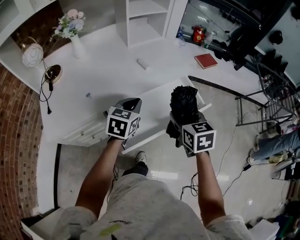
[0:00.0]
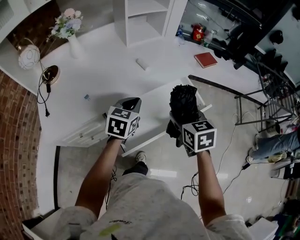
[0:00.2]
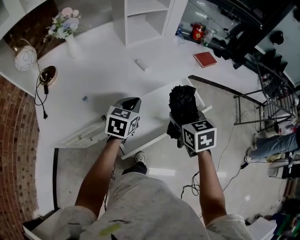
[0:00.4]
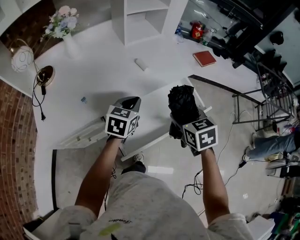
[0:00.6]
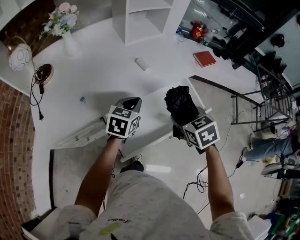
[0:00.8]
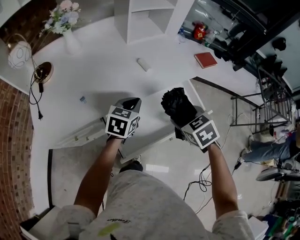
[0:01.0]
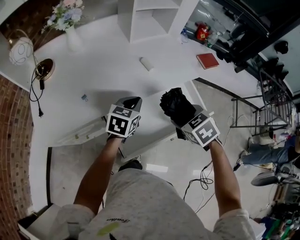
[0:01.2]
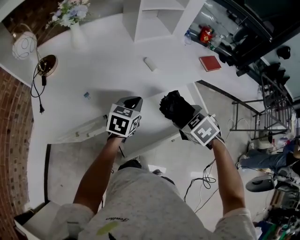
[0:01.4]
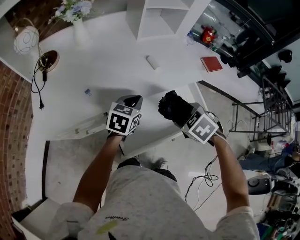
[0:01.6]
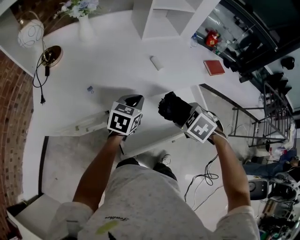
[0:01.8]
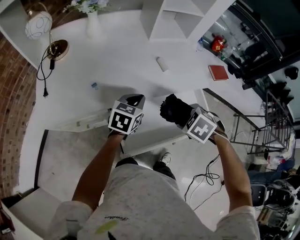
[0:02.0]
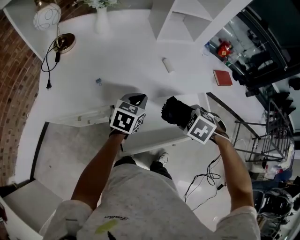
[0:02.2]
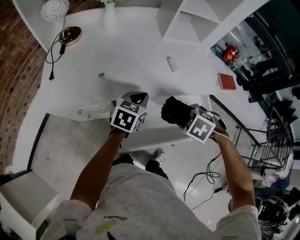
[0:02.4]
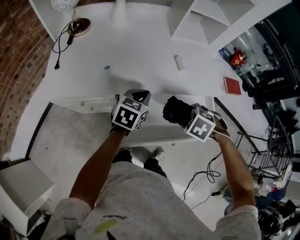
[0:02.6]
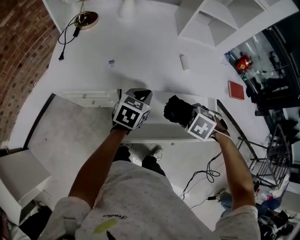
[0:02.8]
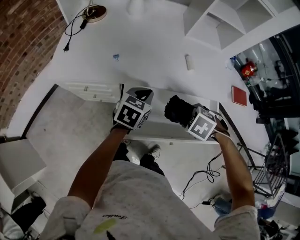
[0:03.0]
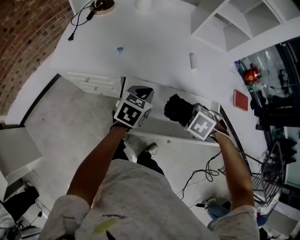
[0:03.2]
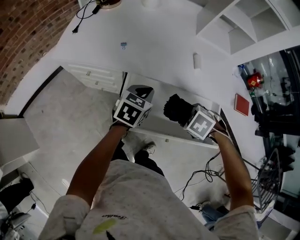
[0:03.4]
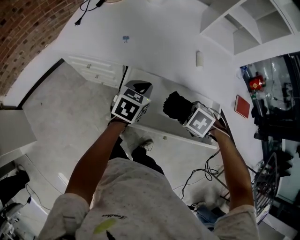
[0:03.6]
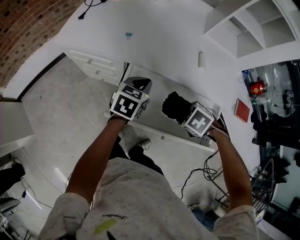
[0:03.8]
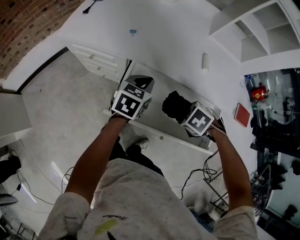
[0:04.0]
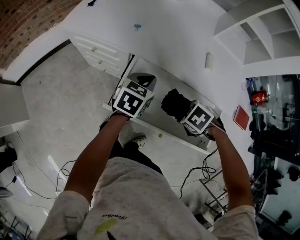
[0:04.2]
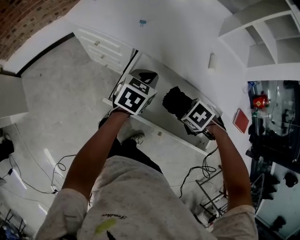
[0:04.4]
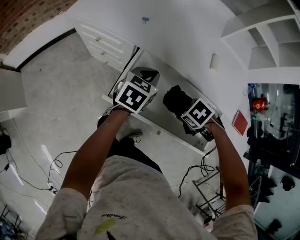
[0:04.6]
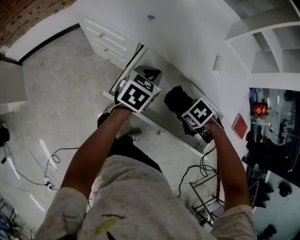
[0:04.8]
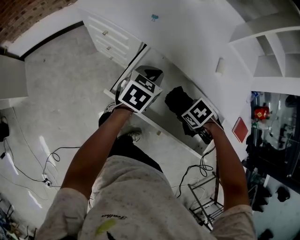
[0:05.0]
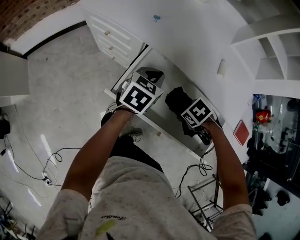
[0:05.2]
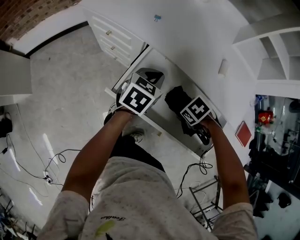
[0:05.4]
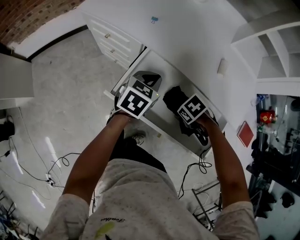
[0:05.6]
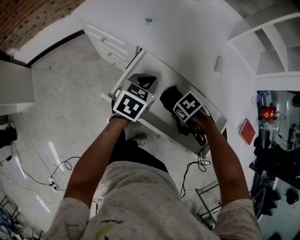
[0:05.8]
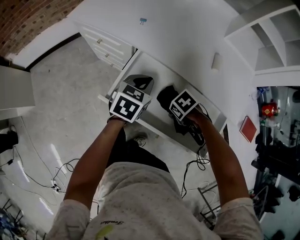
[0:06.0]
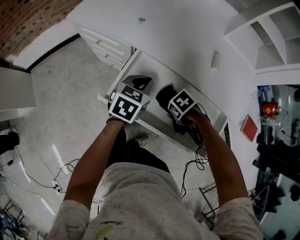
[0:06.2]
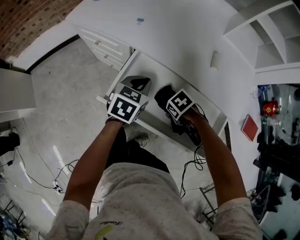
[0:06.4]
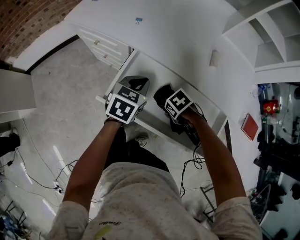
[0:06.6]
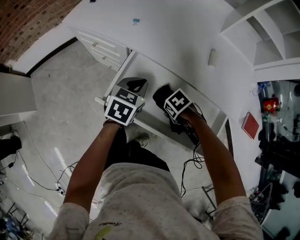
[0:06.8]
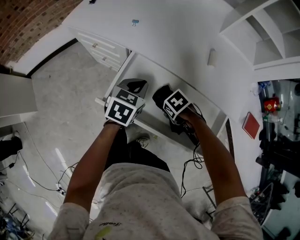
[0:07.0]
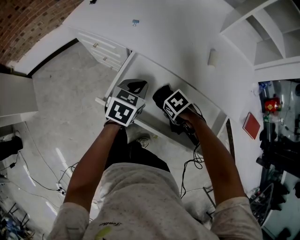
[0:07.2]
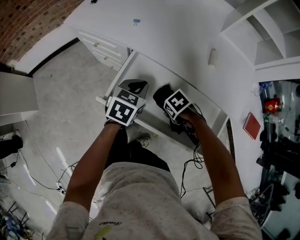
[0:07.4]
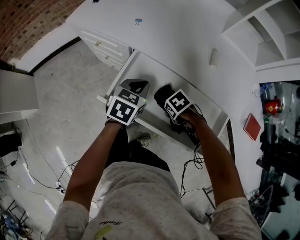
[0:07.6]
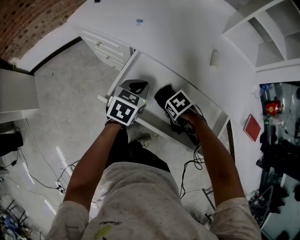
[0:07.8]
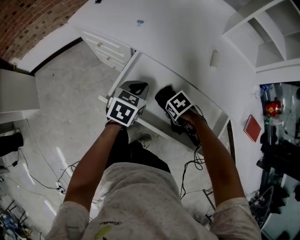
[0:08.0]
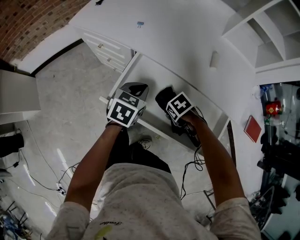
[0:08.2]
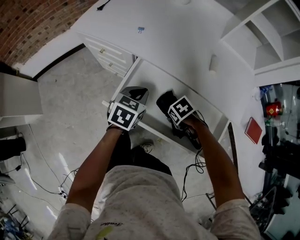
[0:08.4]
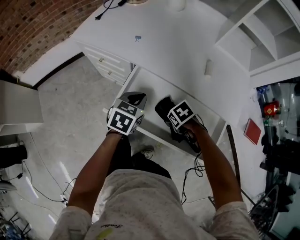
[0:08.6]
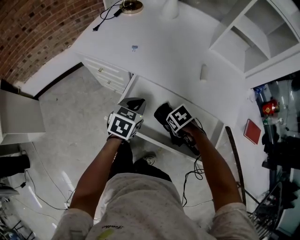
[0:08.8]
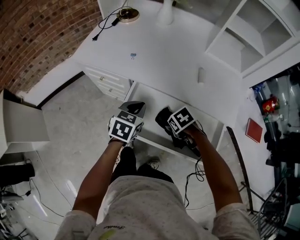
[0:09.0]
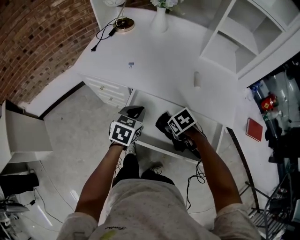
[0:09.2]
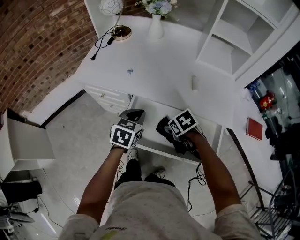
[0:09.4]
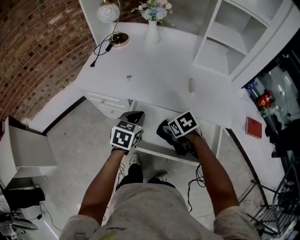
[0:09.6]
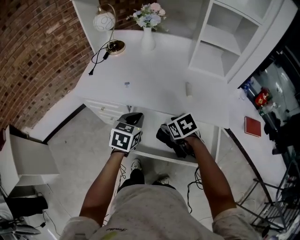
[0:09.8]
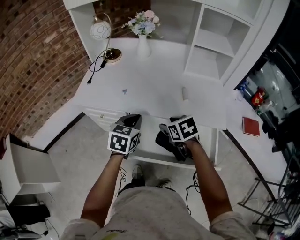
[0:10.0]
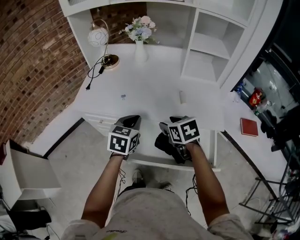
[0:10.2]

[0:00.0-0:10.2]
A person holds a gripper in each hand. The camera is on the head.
0:00.0 to 0:01.4: The right gripper travels downward by about 5 cm, and tilts its fingers approximately 30 degrees downward, while the left gripper shifts some 5 cm forward.
0:01.4 to 0:03.0: The left gripper shifts by approximately 5 cm, and turns by about 20 degrees. The right gripper goes roughly 5 cm downward, and changes its angle by some 50 degrees.
0:03.0 to 0:04.4: The right gripper goes some 5 cm downward.
0:04.4 to 0:05.8: The right gripper shifts some 10 cm downward.
0:05.8 to 0:07.2: There are only small adjustments of the grippers.
0:07.2 to 0:08.8: The right gripper goes about 5 cm upward.
0:08.8 to 0:10.2: The right gripper moves upward, some 20 cm, and tips its fingers upward by some 30 degrees. The left gripper moves upward, about 15 cm.

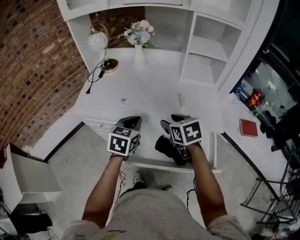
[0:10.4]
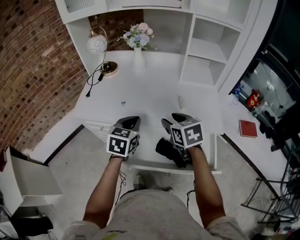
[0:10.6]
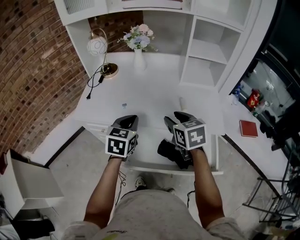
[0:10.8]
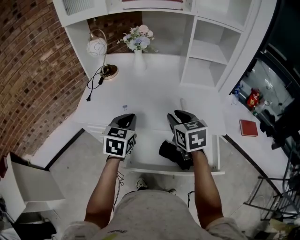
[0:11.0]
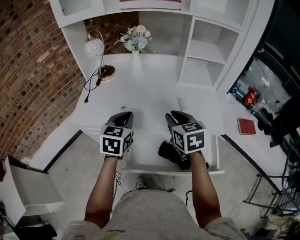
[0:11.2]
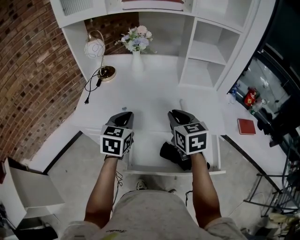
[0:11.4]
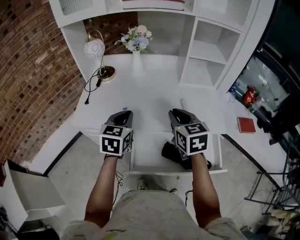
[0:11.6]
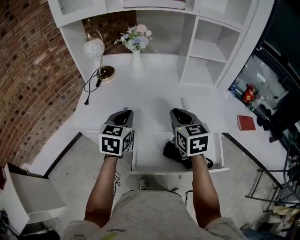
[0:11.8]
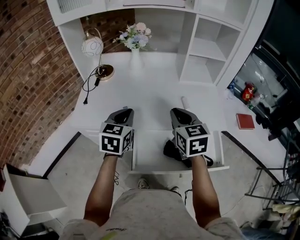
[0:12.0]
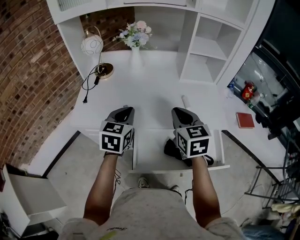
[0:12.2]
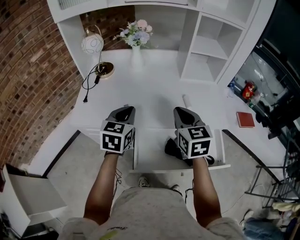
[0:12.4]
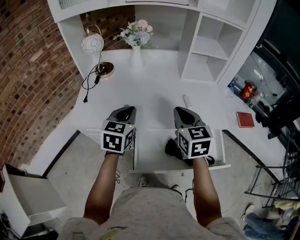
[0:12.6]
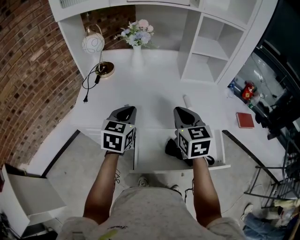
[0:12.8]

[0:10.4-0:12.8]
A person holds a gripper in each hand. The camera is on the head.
0:10.4 to 0:11.6: The left gripper moves to the left and forward, some 10 cm; the right gripper goes roughly 5 cm upward, rotates some 20 degrees, and closes.
0:11.6 to 0:12.8: The grippers move only a little.

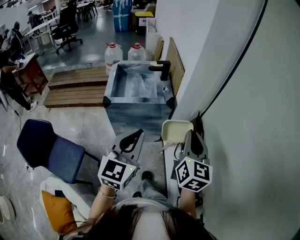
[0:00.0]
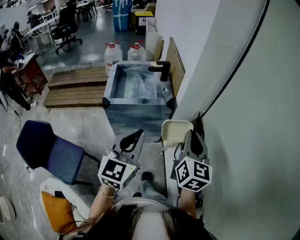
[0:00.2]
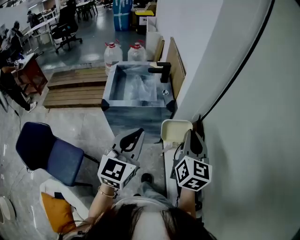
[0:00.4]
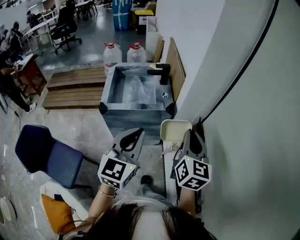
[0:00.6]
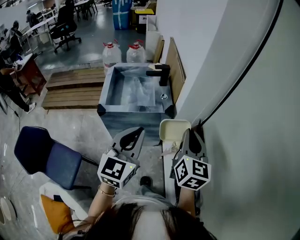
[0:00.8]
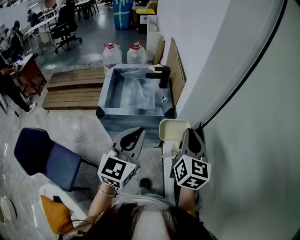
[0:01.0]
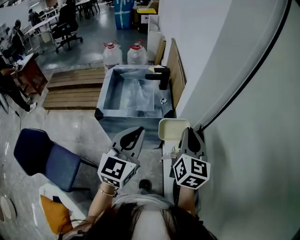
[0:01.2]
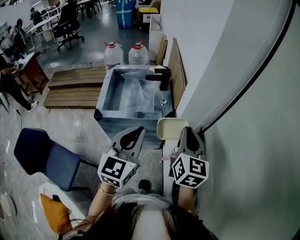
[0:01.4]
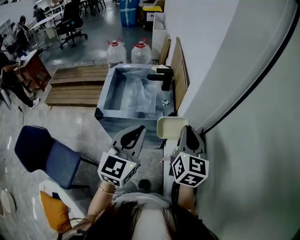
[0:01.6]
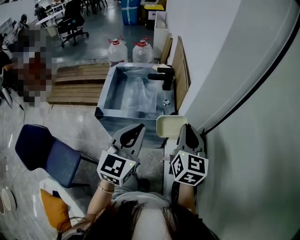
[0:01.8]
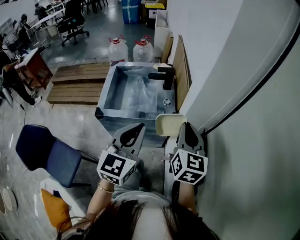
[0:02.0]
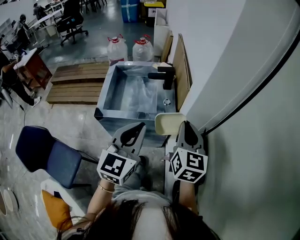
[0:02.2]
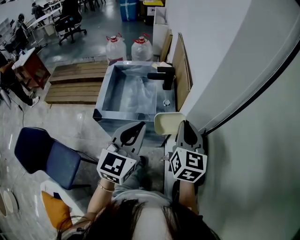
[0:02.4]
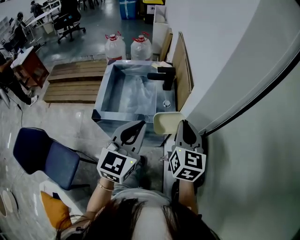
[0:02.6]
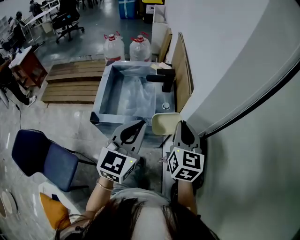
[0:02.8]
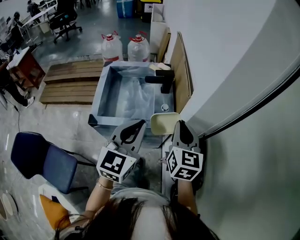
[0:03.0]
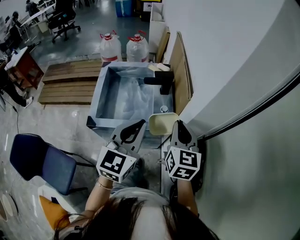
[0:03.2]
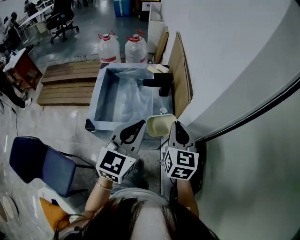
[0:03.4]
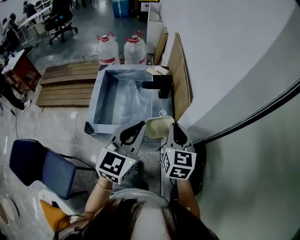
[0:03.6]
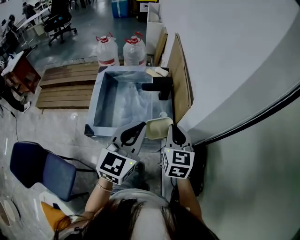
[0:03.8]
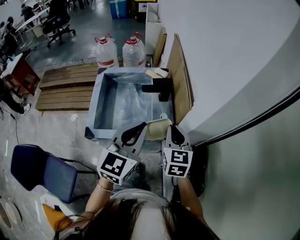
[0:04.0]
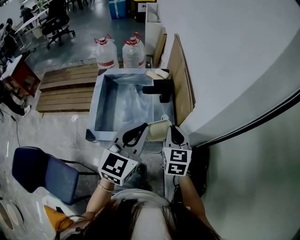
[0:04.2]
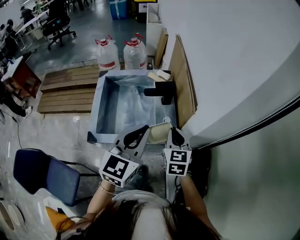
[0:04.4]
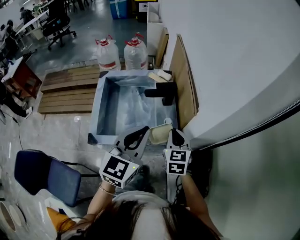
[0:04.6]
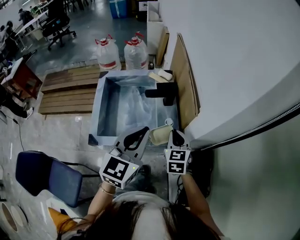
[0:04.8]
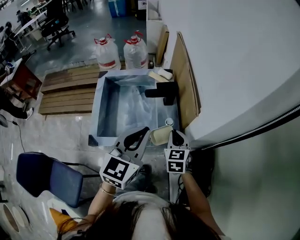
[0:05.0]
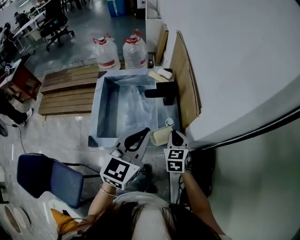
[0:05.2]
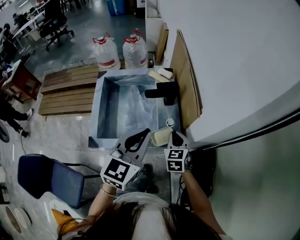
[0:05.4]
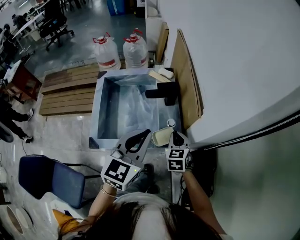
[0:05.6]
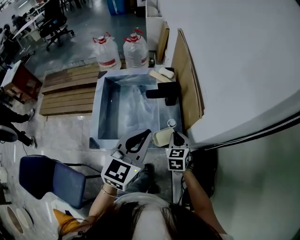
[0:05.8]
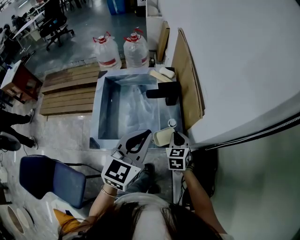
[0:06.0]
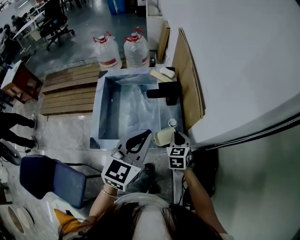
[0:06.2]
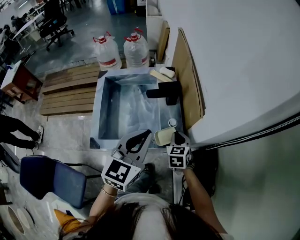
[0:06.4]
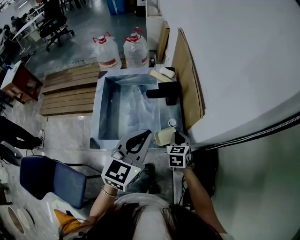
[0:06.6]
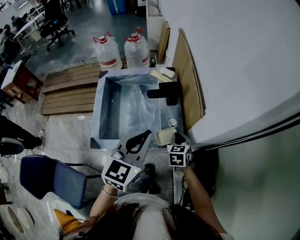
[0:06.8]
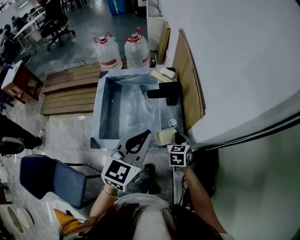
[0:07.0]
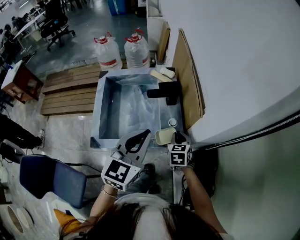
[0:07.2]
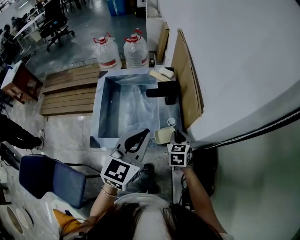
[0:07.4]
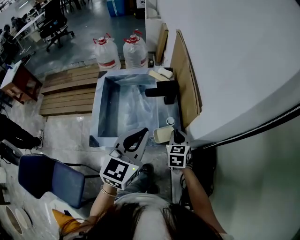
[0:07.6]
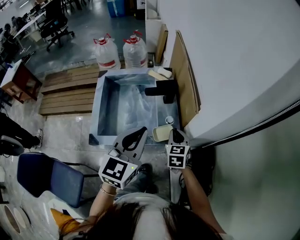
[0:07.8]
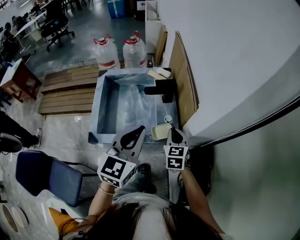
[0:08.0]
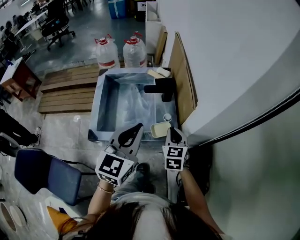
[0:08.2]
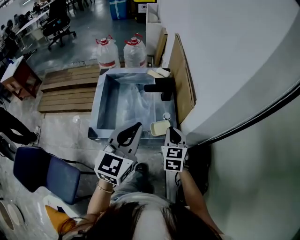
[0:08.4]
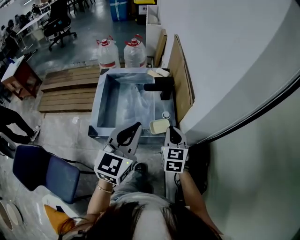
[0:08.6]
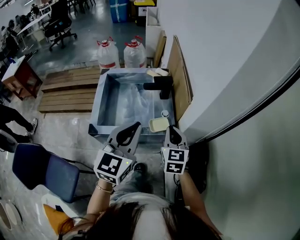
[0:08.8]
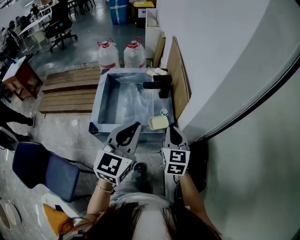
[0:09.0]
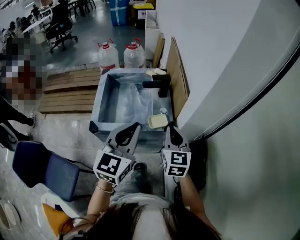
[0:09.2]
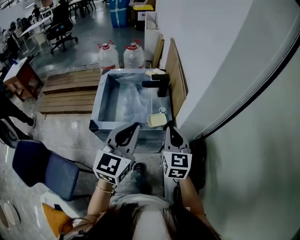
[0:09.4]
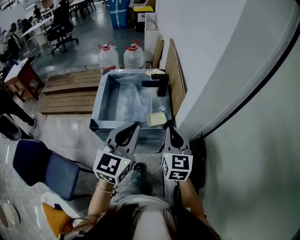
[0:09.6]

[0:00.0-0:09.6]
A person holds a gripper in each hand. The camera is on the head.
0:00.0 to 0:01.6: Both grippers move forward, roughly 20 cm.
0:01.6 to 0:03.2: The right gripper travels forward and to the left by approximately 15 cm. The left gripper goes about 10 cm forward.
0:03.2 to 0:04.8: The right gripper is displaced downward and forward by approximately 15 cm. The left gripper goes approximately 5 cm forward.
0:04.8 to 0:06.4: The right gripper goes some 10 cm downward.
0:06.4 to 0:08.0: The right gripper shifts some 5 cm upward.
0:08.0 to 0:09.6: The left gripper travels backward by some 10 cm; the right gripper shifts some 20 cm upward and backward, and swivels approximately 20 degrees.

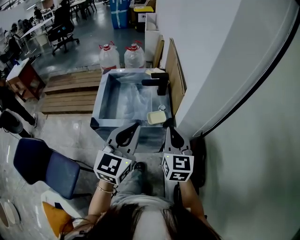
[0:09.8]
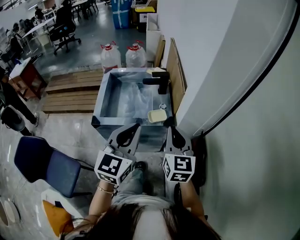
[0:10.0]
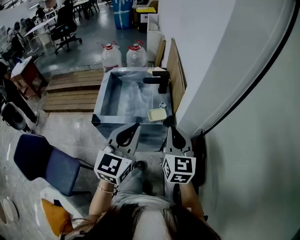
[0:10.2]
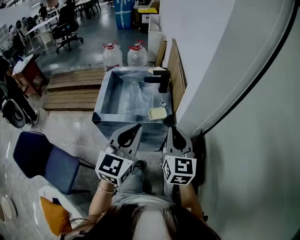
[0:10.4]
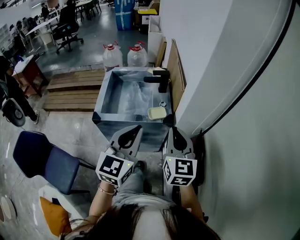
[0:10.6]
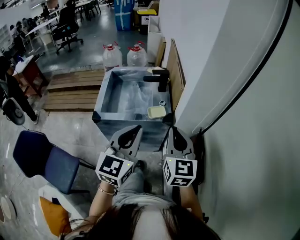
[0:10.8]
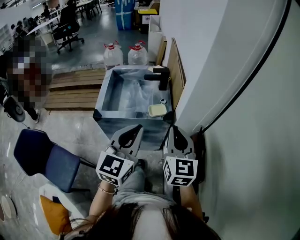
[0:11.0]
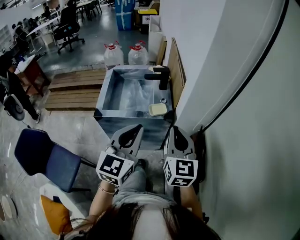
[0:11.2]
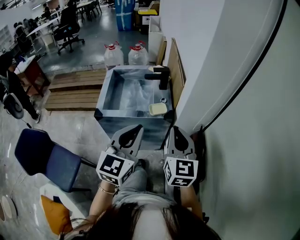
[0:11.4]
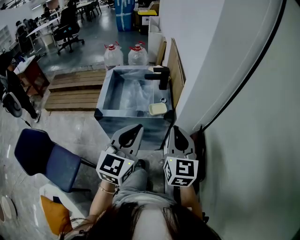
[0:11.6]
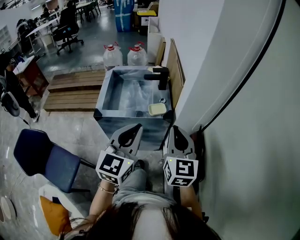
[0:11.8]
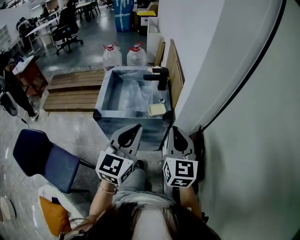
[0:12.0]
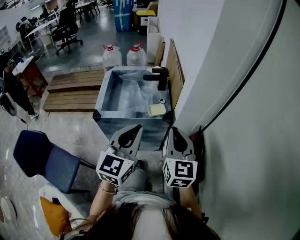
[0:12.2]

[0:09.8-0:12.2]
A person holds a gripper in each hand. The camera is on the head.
0:09.8 to 0:11.0: The two grippers go about 5 cm backward.
0:11.0 to 0:12.2: The grippers make only small movements.
